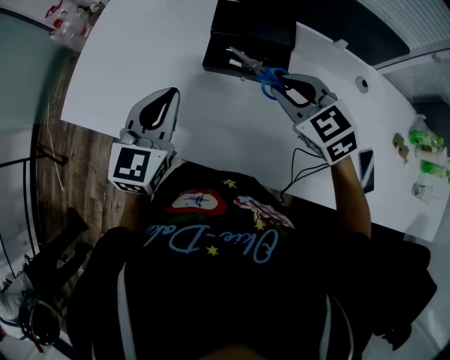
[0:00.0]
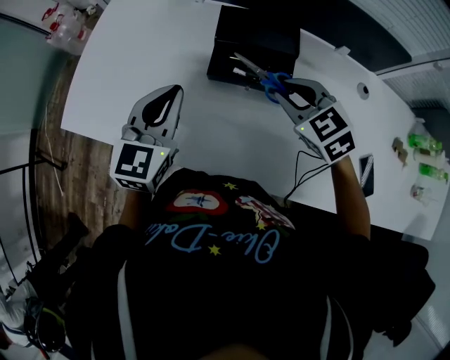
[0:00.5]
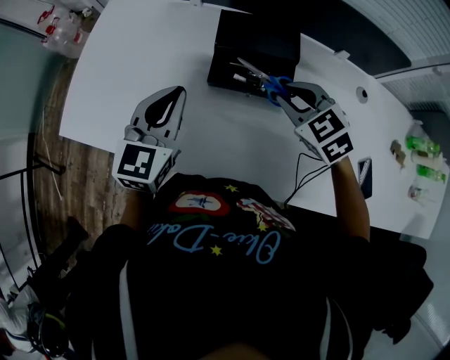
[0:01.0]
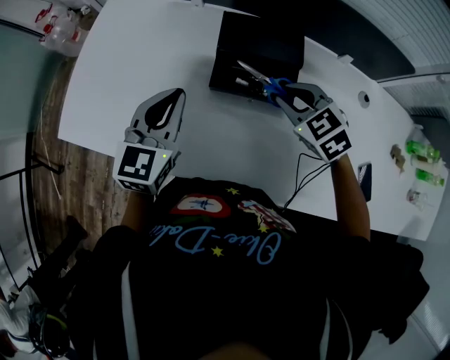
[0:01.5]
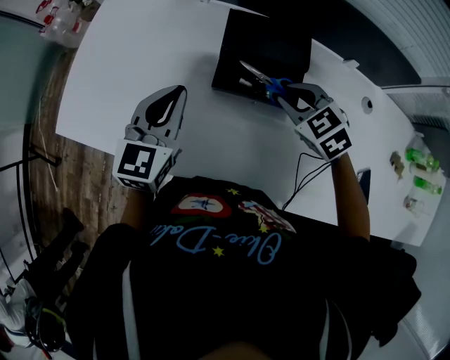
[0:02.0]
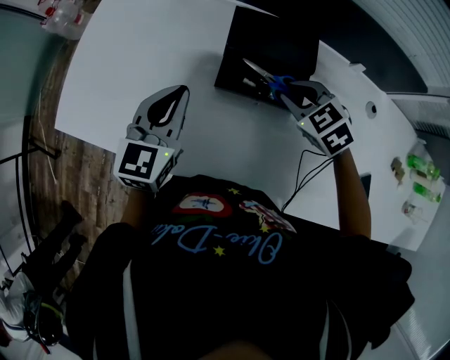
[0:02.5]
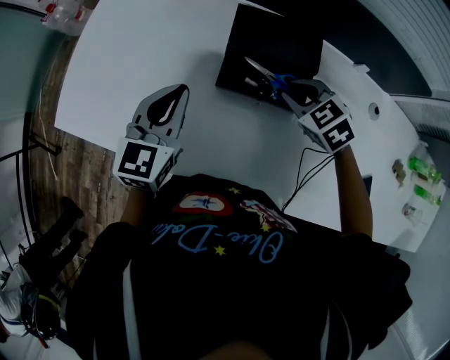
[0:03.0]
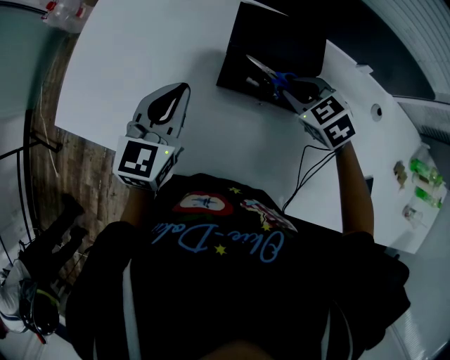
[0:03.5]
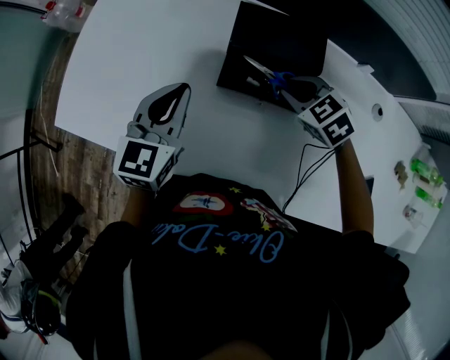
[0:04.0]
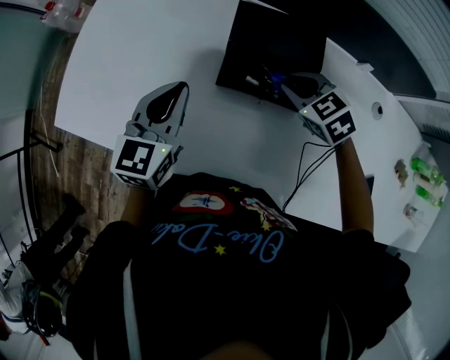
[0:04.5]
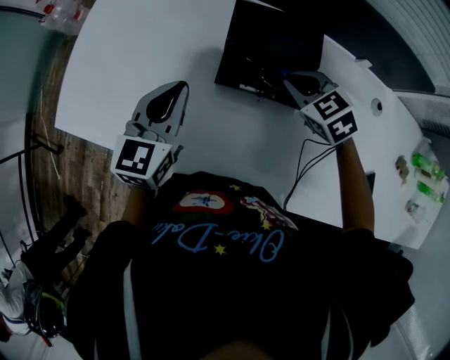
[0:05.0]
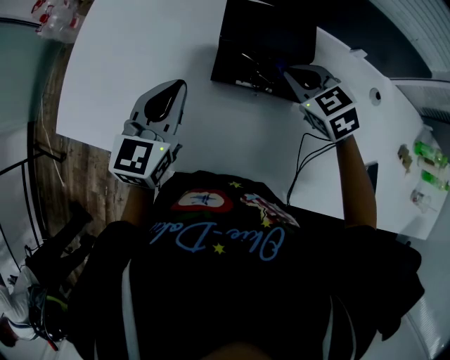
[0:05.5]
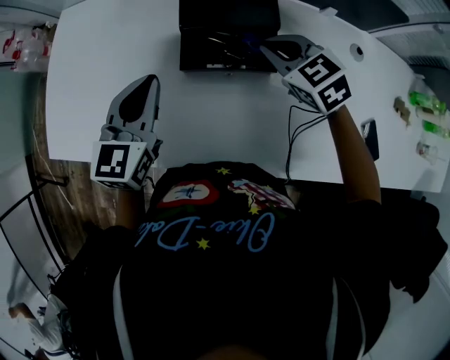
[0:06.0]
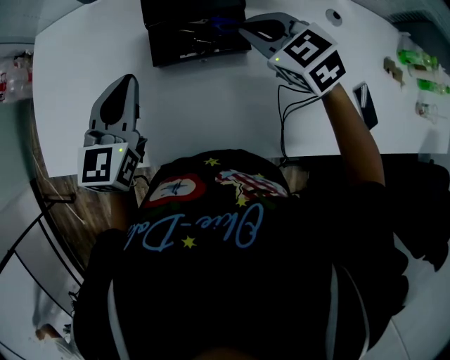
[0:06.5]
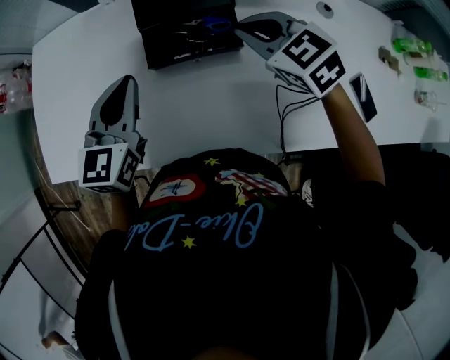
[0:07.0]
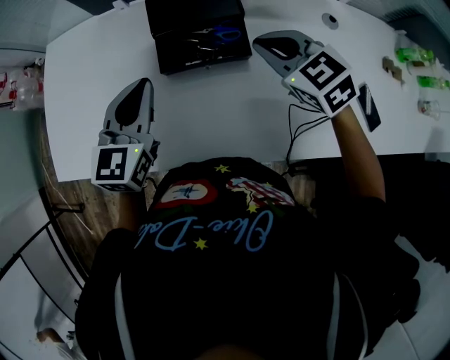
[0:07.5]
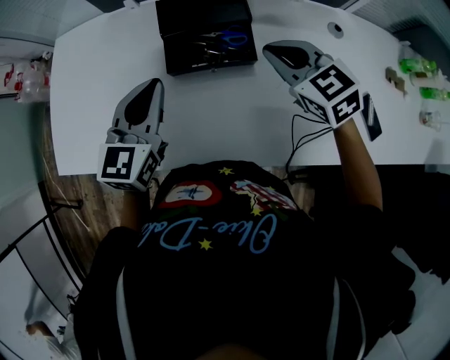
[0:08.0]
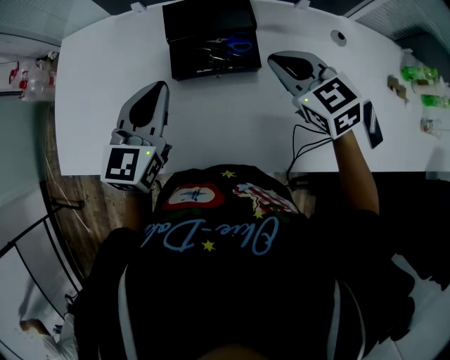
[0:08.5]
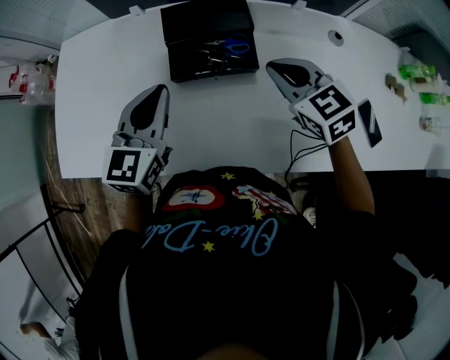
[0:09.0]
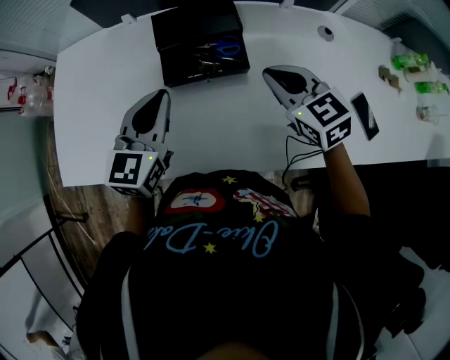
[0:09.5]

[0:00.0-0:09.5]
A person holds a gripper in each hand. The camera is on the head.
0:00.0 to 0:02.0: The right gripper travels forward and downward by some 10 cm; the left gripper travels forward by some 10 cm.
0:02.0 to 0:04.0: The right gripper moves about 5 cm.
0:04.0 to 0:05.5: The grippers move only a little.
0:05.5 to 0:07.5: The left gripper ends up roughly 5 cm from where it was. The right gripper heads backward and upward, covering some 10 cm.
0:07.5 to 0:09.5: The grippers move only a little.

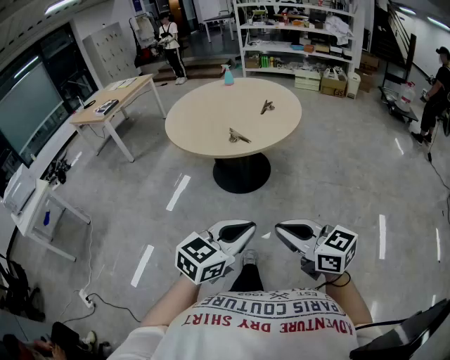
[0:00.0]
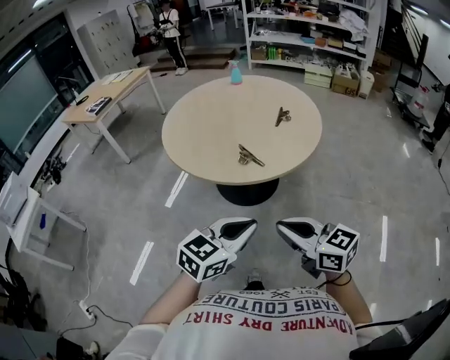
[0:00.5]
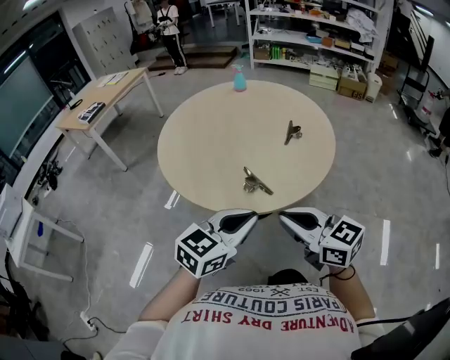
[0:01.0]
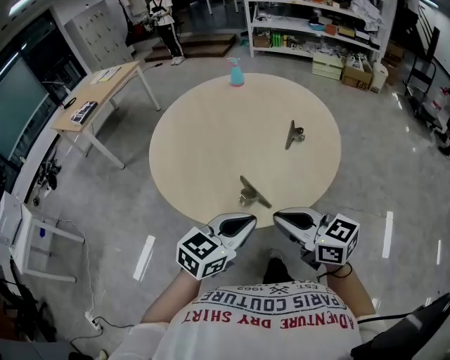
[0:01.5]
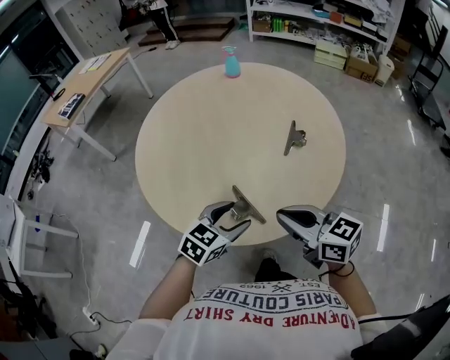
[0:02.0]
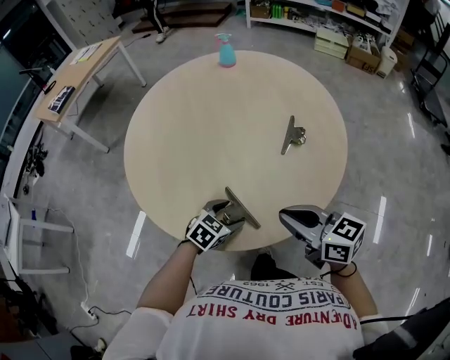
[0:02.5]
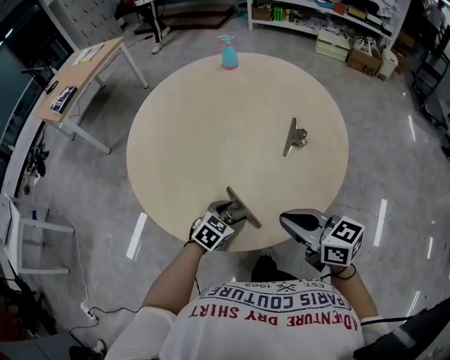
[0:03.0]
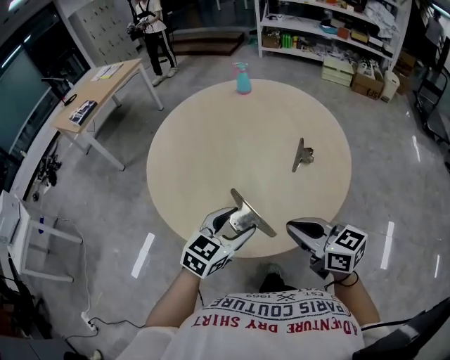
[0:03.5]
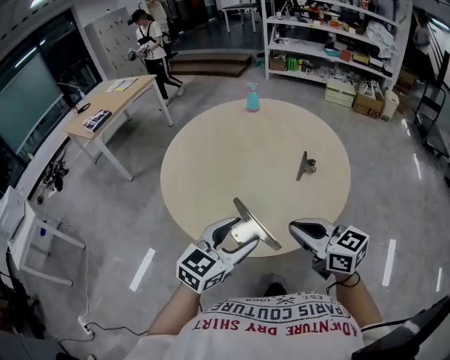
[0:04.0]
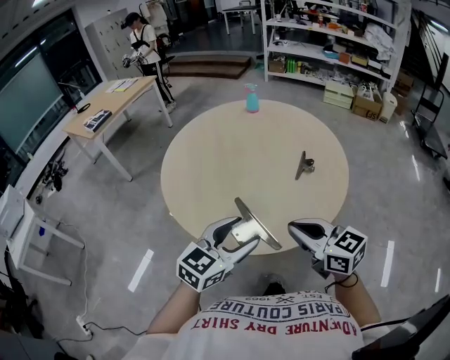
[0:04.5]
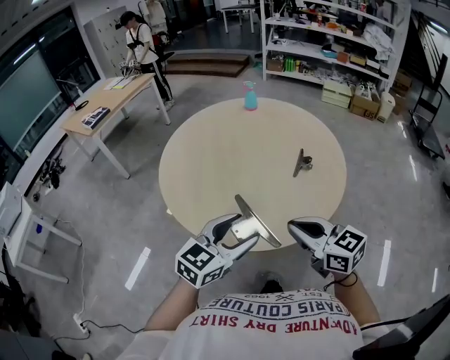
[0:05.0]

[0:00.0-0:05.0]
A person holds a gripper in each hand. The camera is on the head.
0:00.0 to 0:02.5: The two grippers travel together, forward, approximately 70 cm. The left gripper points its fingers roughly 30 degrees further downward, and opens up.
0:02.5 to 0:05.0: The right gripper heads backward and upward, covering some 10 cm. Meanwhile the left gripper is displaced upward and backward by roughly 30 cm, and angles its fingers upward, by about 30 degrees.

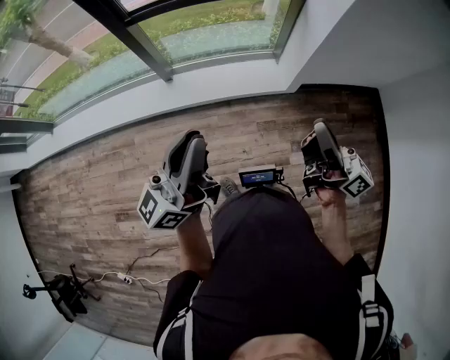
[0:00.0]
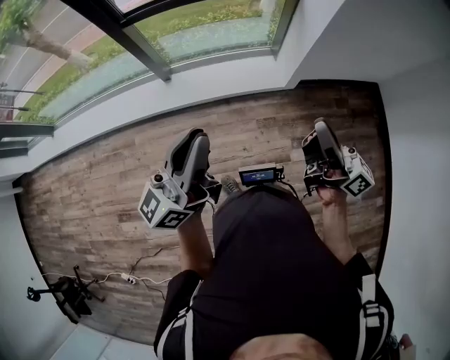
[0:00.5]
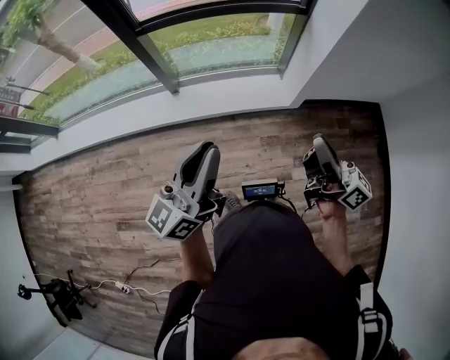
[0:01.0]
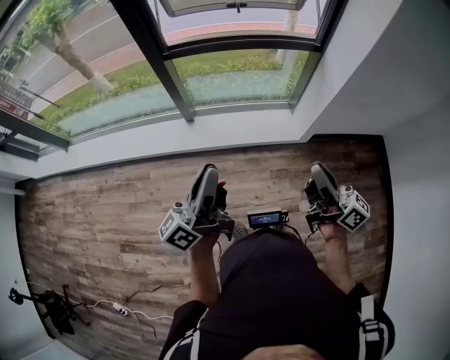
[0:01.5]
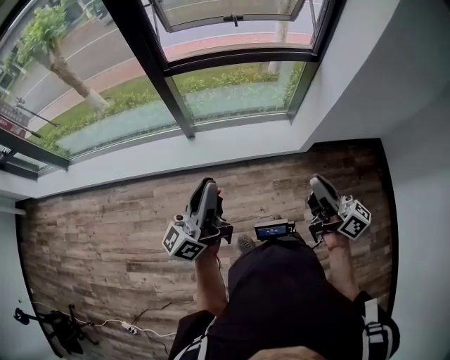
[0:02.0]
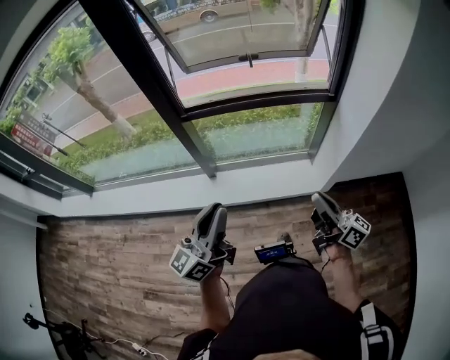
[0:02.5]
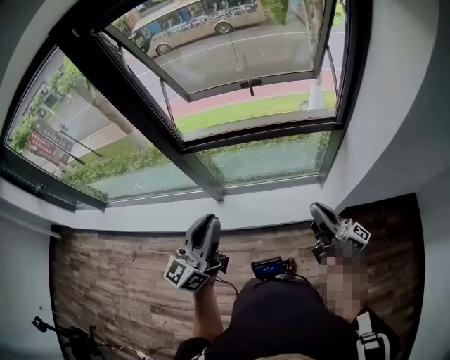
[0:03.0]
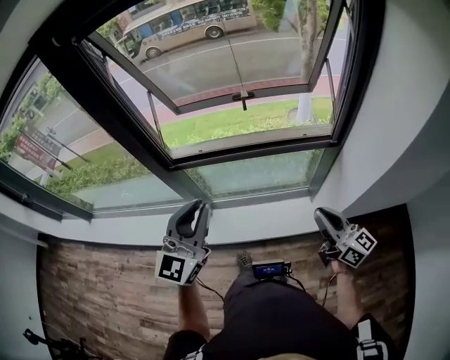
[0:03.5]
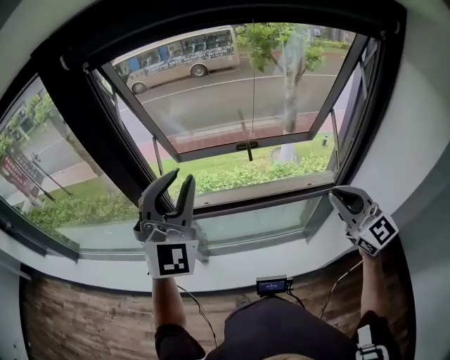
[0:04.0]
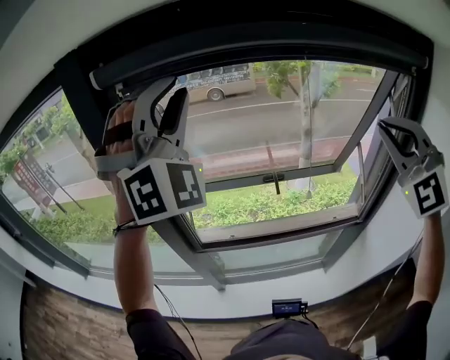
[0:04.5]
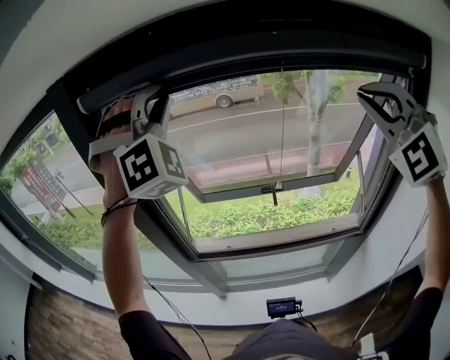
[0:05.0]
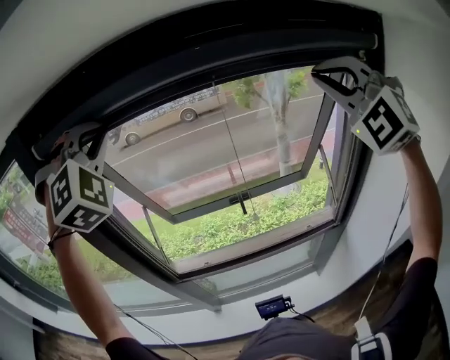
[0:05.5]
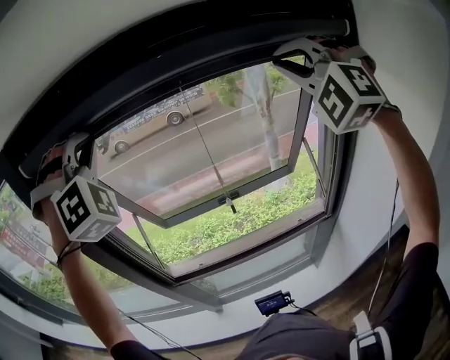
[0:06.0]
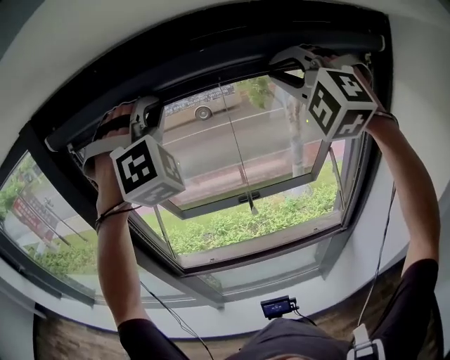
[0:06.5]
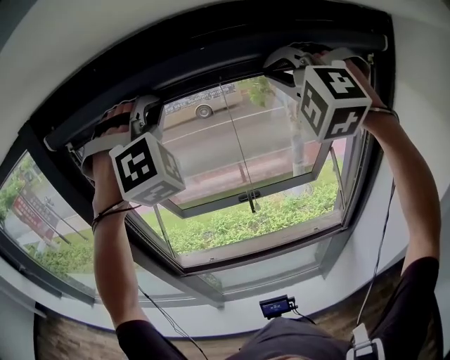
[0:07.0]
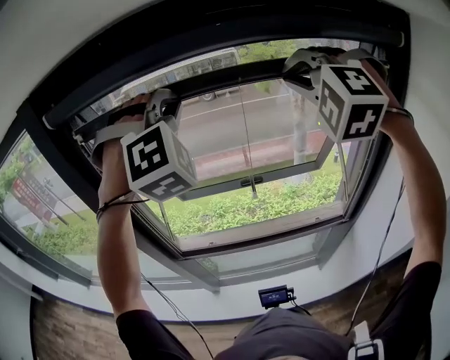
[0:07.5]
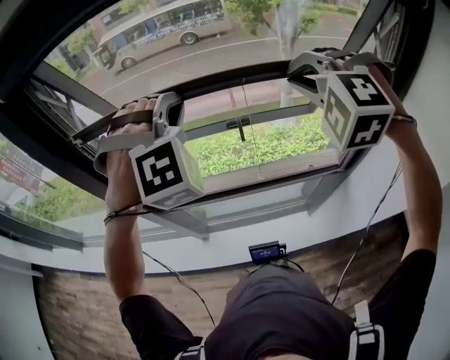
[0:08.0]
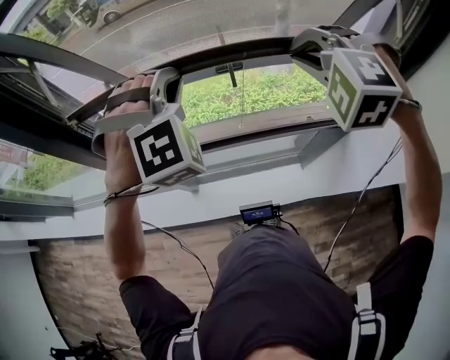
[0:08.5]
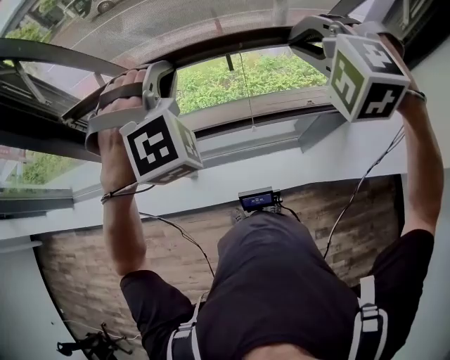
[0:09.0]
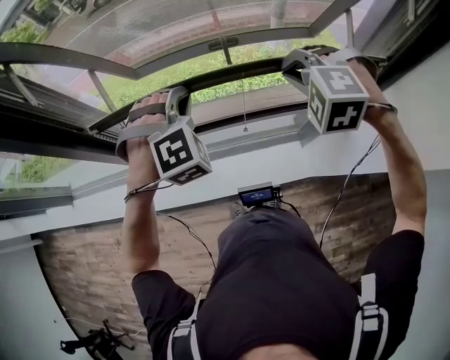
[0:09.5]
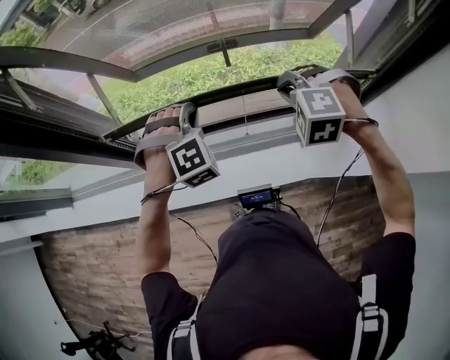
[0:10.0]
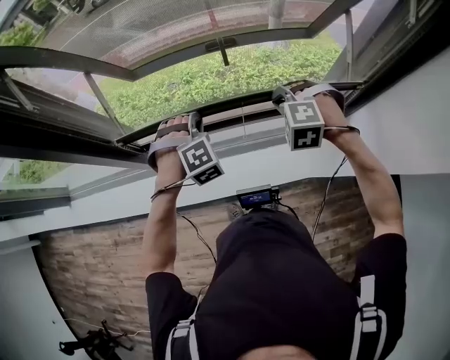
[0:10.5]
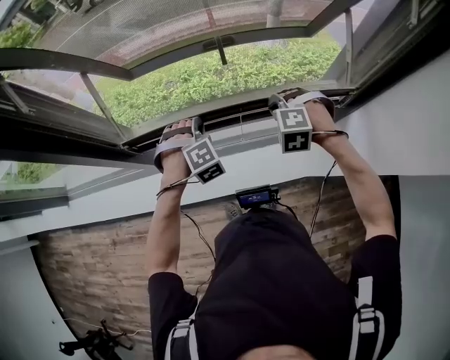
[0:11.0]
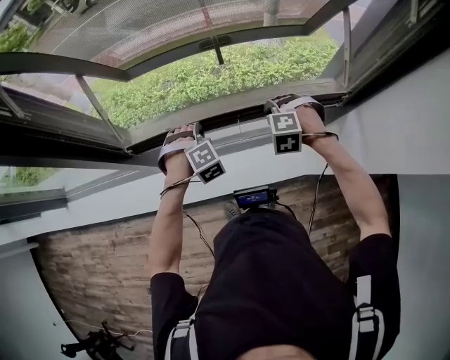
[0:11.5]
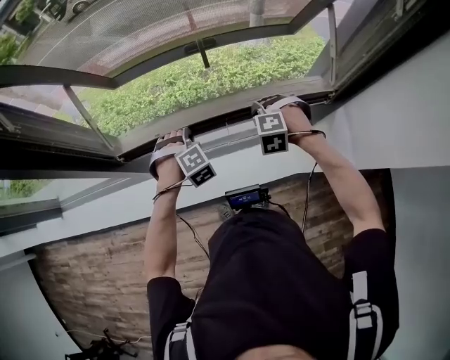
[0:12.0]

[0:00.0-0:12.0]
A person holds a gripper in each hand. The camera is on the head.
0:00.0 to 0:02.0: The grippers both shift to the left by roughly 10 cm.
0:02.0 to 0:04.0: The pair of grippers is taken forward, roughly 50 cm. The left gripper shifts roughly 20 cm upward, and rotates around the line of its fingers by roughly 90 degrees, clockwise from behind. Meanwhile the right gripper rolls counterclockwise, seen from behind, by some 60 degrees.
0:04.0 to 0:06.0: The grippers both shift upward and forward by about 35 cm. The left gripper rolls clockwise, seen from behind, by about 50 degrees, while the right gripper twists about 70 degrees counterclockwise, seen from behind.
0:06.0 to 0:08.0: The left gripper shifts approximately 20 cm downward and to the right, and turns by approximately 20 degrees. Meanwhile the right gripper shifts roughly 20 cm downward and to the left, and points its fingers roughly 30 degrees further downward.
0:08.0 to 0:10.0: The grippers both shift downward by approximately 30 cm. The right gripper turns by about 20 degrees; the left gripper changes its angle by roughly 20 degrees.
0:10.0 to 0:12.0: The two grippers go roughly 15 cm downward.
